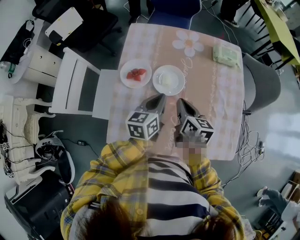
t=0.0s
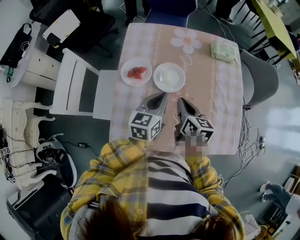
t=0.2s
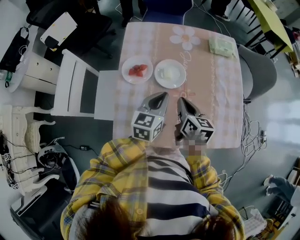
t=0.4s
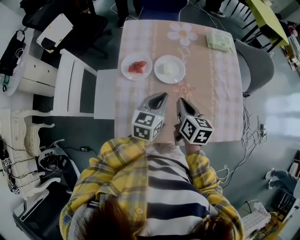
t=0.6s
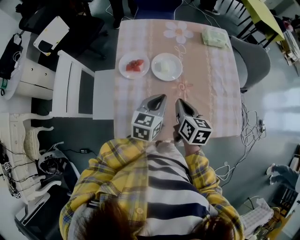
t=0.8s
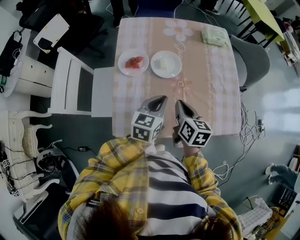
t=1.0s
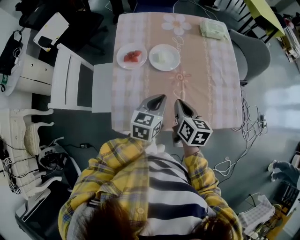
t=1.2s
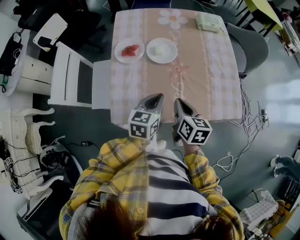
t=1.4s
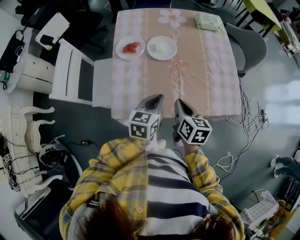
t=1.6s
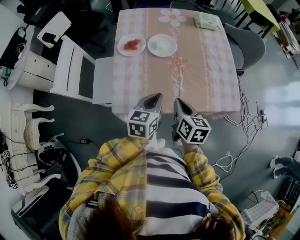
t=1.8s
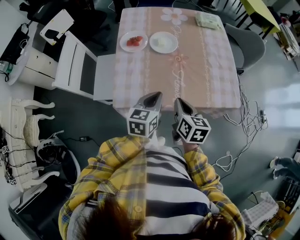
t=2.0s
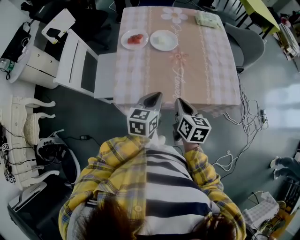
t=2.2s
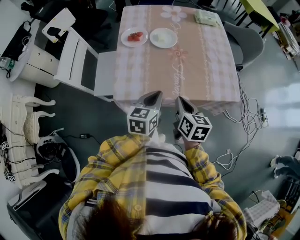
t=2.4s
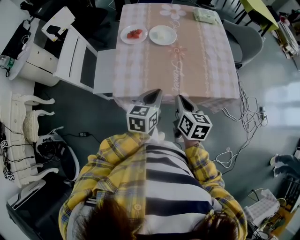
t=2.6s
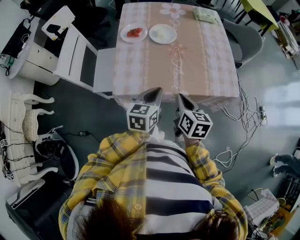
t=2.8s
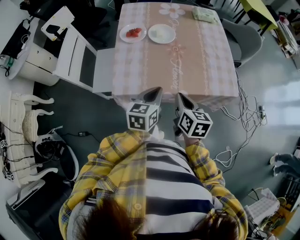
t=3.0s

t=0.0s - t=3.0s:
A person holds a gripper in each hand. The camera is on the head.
t=0.0s - t=1.6s: The right gripper ends up approximately 20 cm from where it was.
t=1.6s - t=3.0s: The right gripper changes place by about 10 cm.

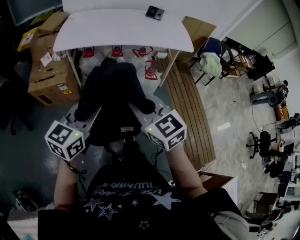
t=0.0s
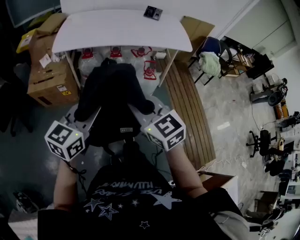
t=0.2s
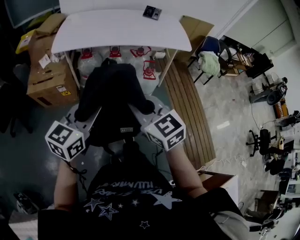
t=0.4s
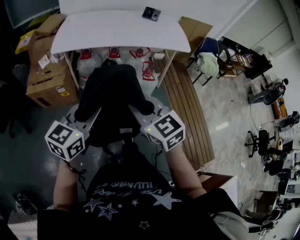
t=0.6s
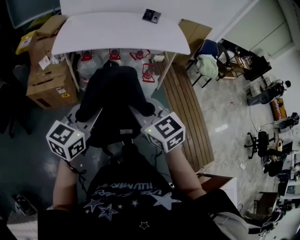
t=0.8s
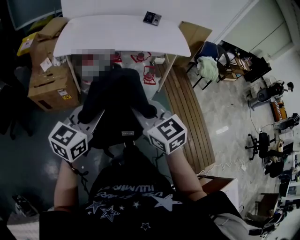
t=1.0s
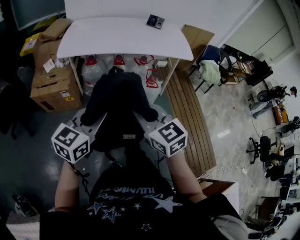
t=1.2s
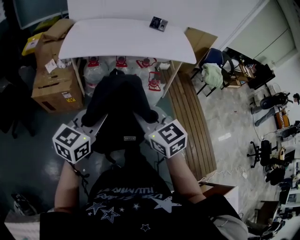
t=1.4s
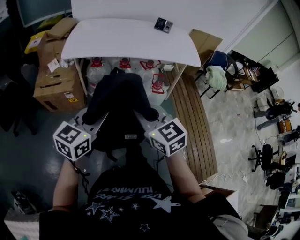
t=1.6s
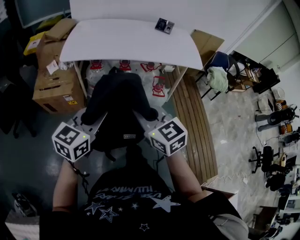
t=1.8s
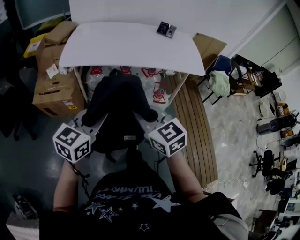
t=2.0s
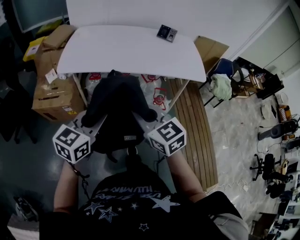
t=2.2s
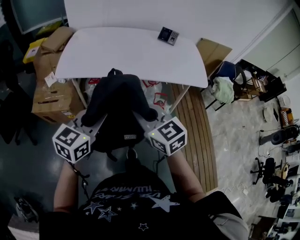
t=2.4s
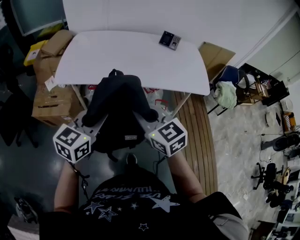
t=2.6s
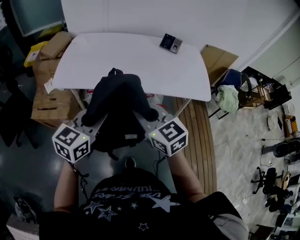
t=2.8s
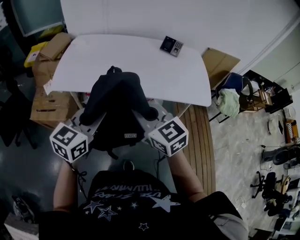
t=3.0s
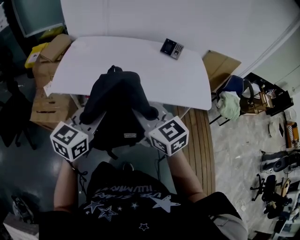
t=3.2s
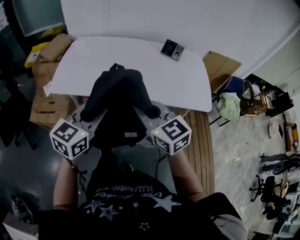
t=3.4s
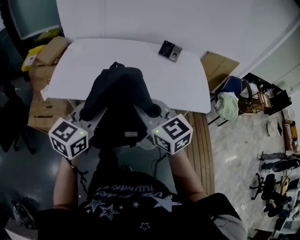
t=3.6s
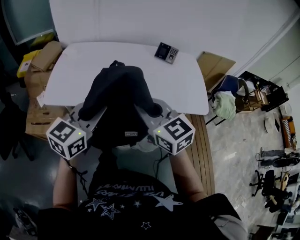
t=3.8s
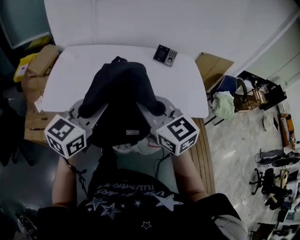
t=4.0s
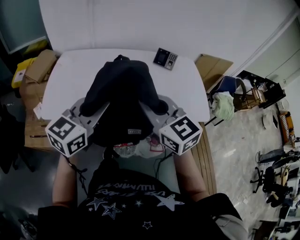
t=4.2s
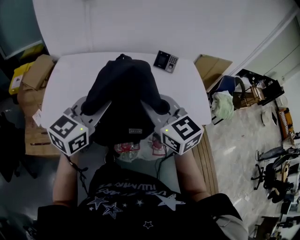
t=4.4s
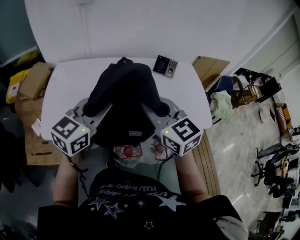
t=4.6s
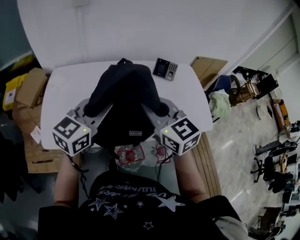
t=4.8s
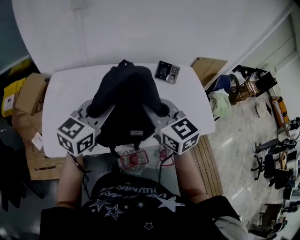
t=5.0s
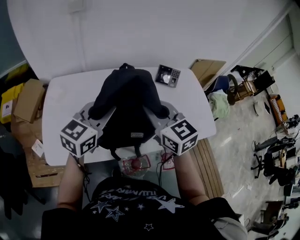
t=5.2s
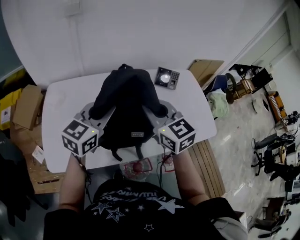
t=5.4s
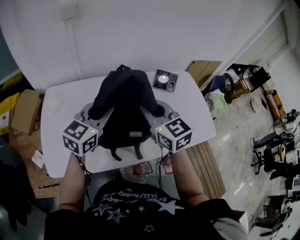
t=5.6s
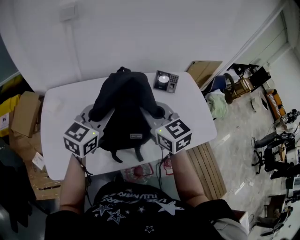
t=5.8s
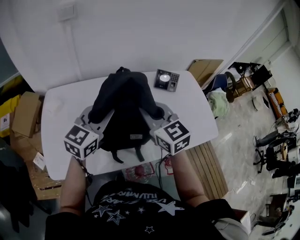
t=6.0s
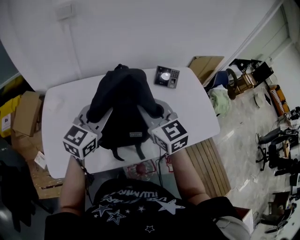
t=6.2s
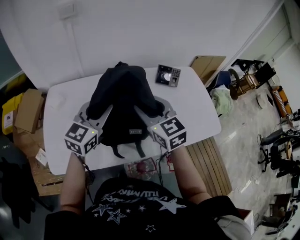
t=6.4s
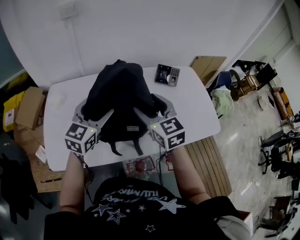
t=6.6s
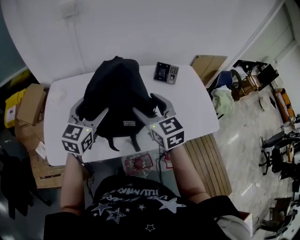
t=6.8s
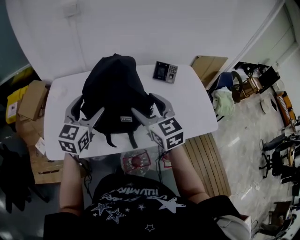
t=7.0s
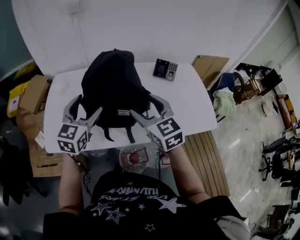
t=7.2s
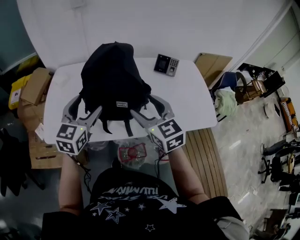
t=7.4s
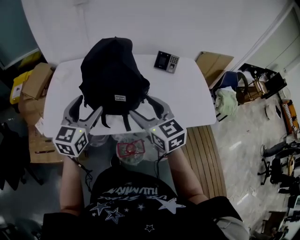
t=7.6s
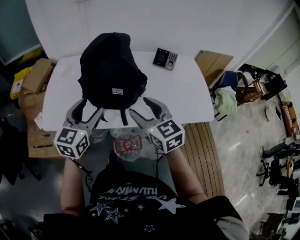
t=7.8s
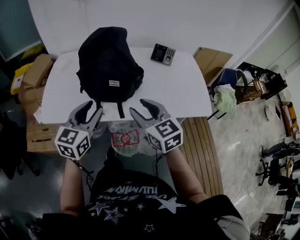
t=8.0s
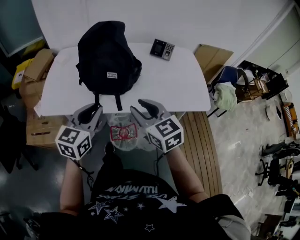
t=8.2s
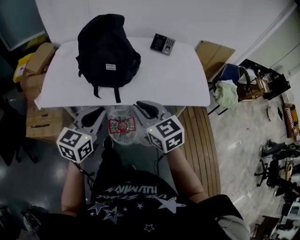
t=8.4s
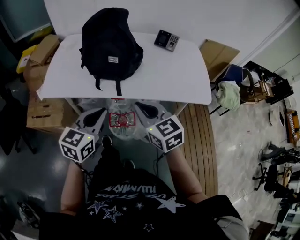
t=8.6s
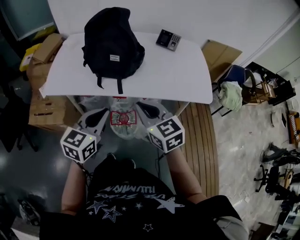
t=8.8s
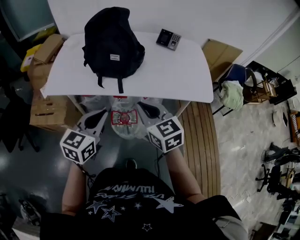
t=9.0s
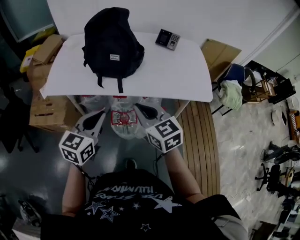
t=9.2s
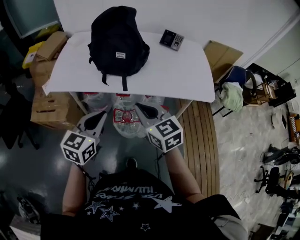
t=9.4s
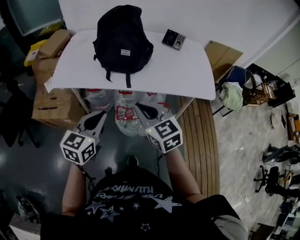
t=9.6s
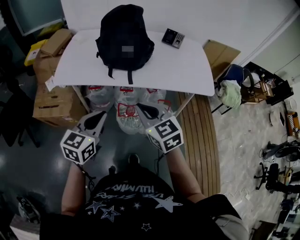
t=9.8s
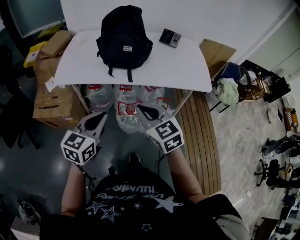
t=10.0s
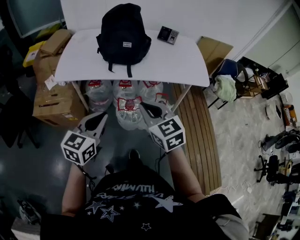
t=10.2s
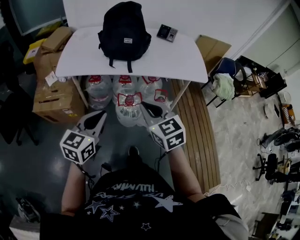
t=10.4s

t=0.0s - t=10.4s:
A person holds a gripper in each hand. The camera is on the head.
t=0.0s - t=1.4s: The two grippers keep their place.
t=1.4s - t=3.0s: Both grippers move forward, some 35 cm.
t=3.0s - t=4.4s: The grippers both shift forward by about 20 cm.
t=4.4s - t=6.0s: The grippers both shift forward and to the left by approximately 20 cm.
t=6.0s - t=7.4s: The left gripper moves backward, approximately 15 cm, changes its angle by roughly 30 degrees, and opens; the right gripper shifts roughly 15 cm backward and to the right, and opens up.
t=7.4s - t=9.0s: The two grippers go roughly 25 cm backward. The left gripper closes up; the right gripper closes its fingers.
t=9.0s - t=10.4s: The two grippers go approximately 20 cm backward and to the left.

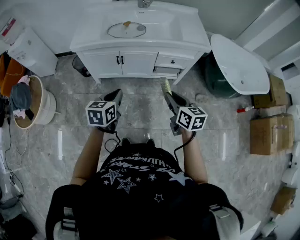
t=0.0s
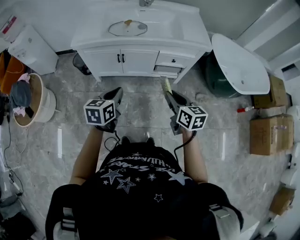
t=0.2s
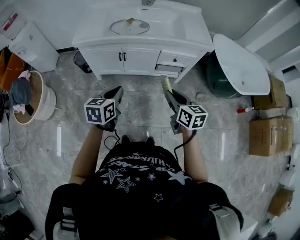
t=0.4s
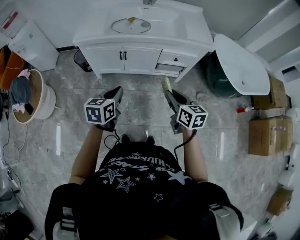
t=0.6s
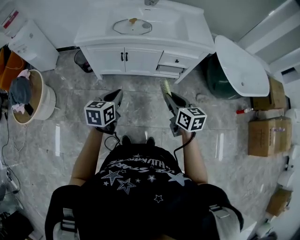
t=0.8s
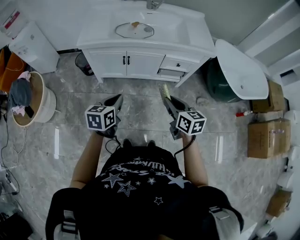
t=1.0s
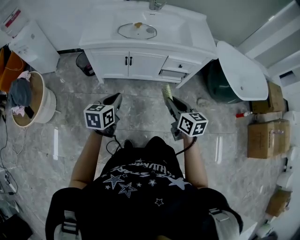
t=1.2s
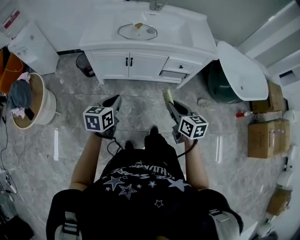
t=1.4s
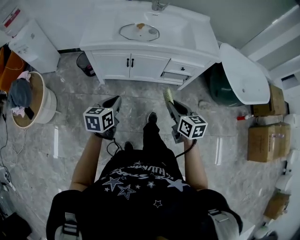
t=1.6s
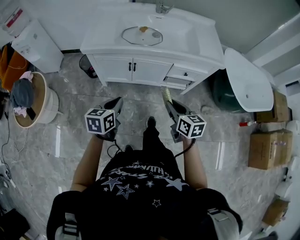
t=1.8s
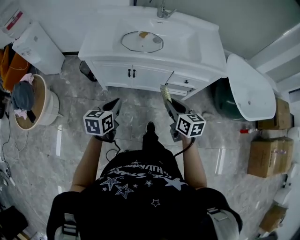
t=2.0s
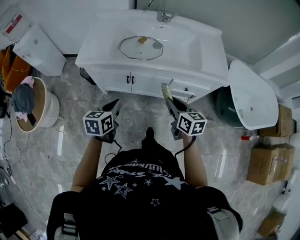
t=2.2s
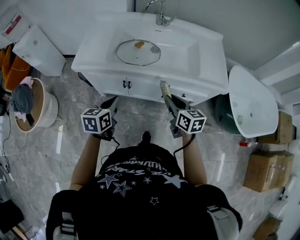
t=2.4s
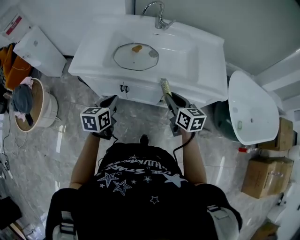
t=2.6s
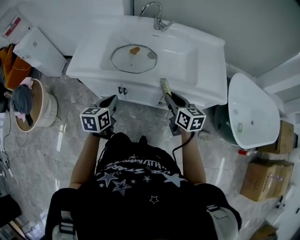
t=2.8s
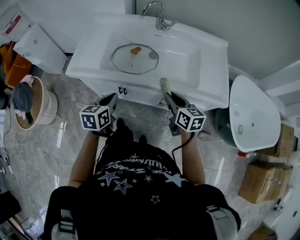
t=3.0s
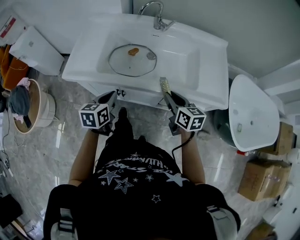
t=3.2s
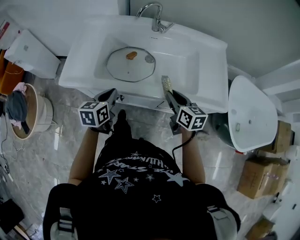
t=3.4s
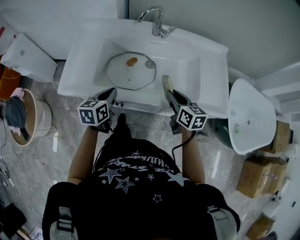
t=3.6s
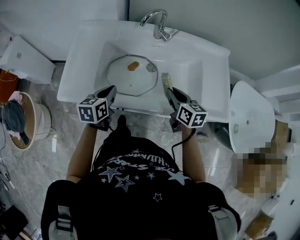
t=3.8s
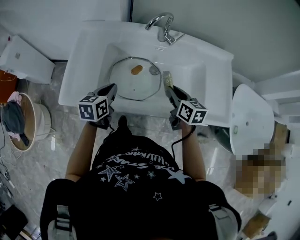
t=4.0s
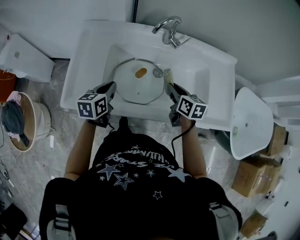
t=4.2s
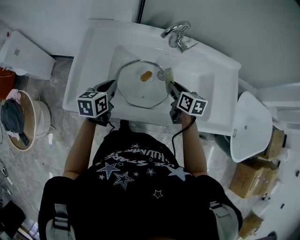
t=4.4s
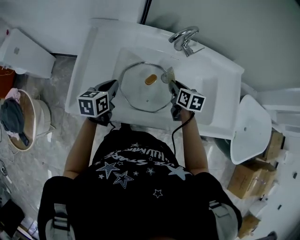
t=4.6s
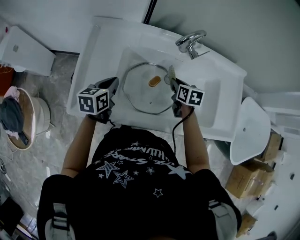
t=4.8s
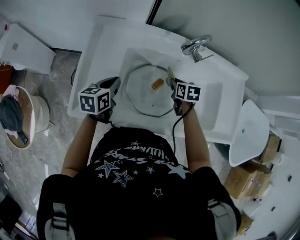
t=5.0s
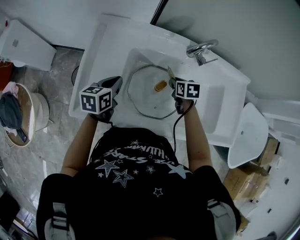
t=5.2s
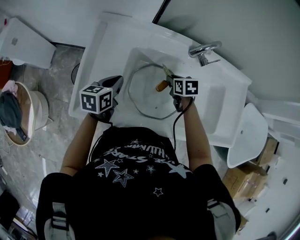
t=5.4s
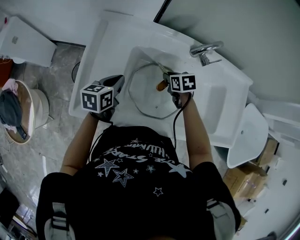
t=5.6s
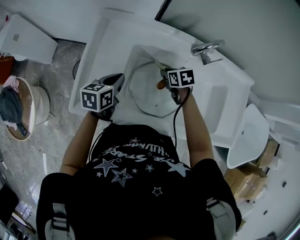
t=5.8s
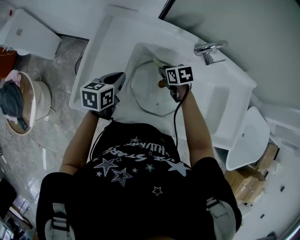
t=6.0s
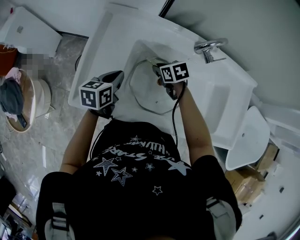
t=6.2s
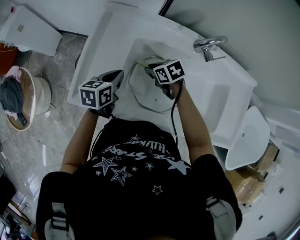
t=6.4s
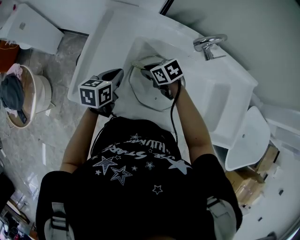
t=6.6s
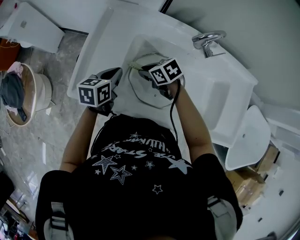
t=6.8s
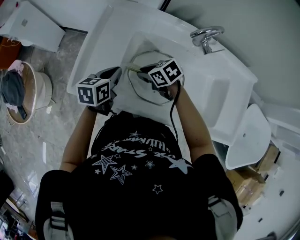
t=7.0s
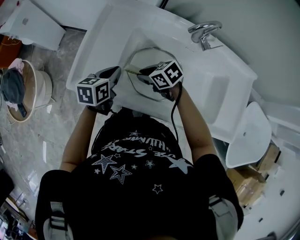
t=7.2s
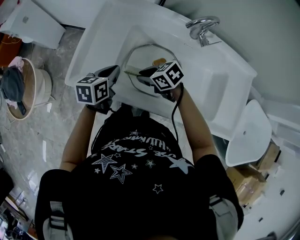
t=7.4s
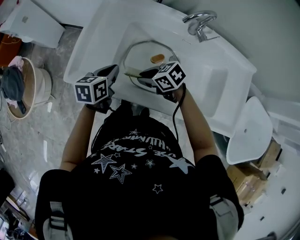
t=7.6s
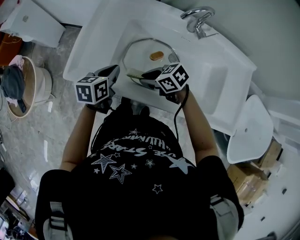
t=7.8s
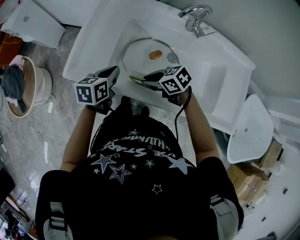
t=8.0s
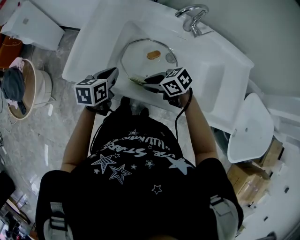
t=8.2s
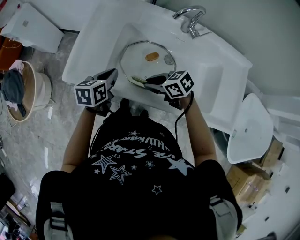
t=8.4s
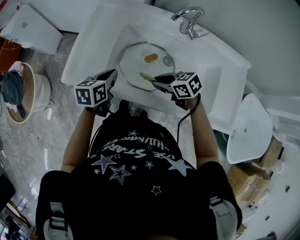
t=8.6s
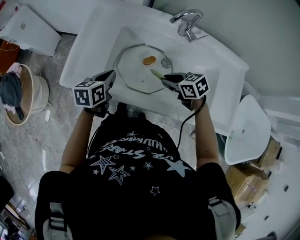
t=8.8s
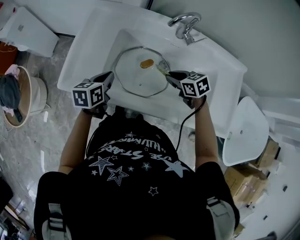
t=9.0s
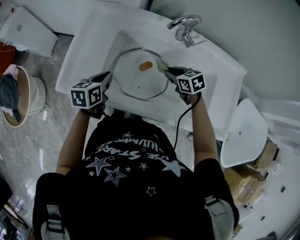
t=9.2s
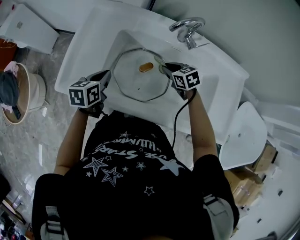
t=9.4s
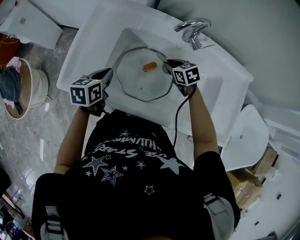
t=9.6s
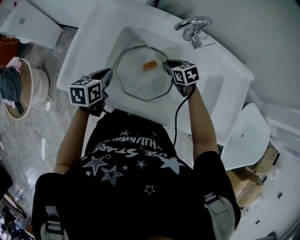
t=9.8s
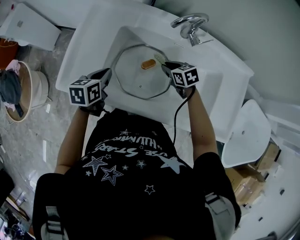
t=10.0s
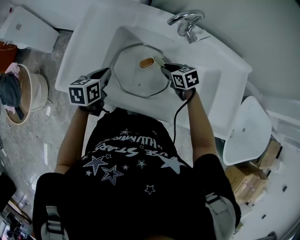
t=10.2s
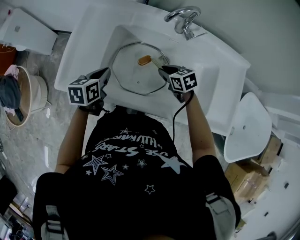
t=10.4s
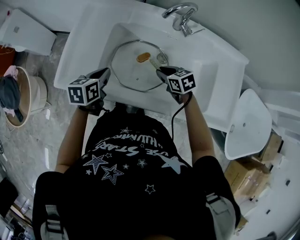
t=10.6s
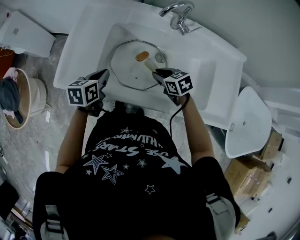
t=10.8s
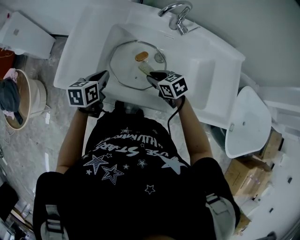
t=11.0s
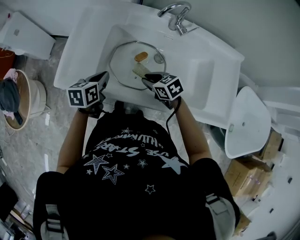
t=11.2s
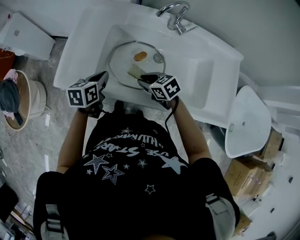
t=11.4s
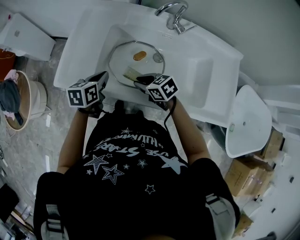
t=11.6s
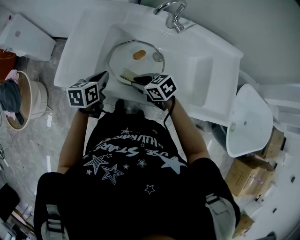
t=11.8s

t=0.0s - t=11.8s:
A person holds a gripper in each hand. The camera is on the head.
t=0.0s - t=1.4s: The two grippers go approximately 10 cm to the left.
t=1.4s - t=3.0s: Both grippers travel together forward, about 35 cm.
t=3.0s - t=4.4s: Both grippers travel together forward, some 30 cm.
t=4.4s - t=6.0s: The right gripper moves to the left, forward and downward, some 20 cm, and rotates about 40 degrees, while the left gripper travels forward and to the left by roughly 10 cm.
t=6.0s - t=7.4s: The left gripper travels backward by roughly 10 cm. Meanwhile the right gripper is displaced backward and to the left by about 20 cm, and swivels about 40 degrees.
t=7.4s - t=8.8s: The right gripper moves to the right and backward, some 15 cm.
t=8.8s - t=10.4s: The right gripper heads forward and downward, covering approximately 10 cm.
t=10.4s - t=11.8s: The right gripper goes roughly 15 cm to the left and backward, while the left gripper goes some 5 cm backward.
